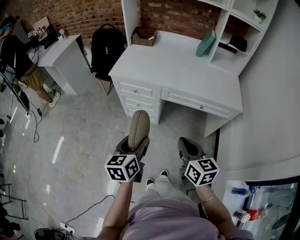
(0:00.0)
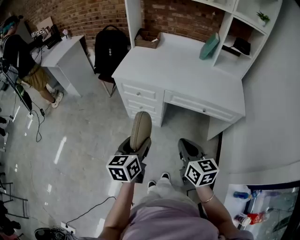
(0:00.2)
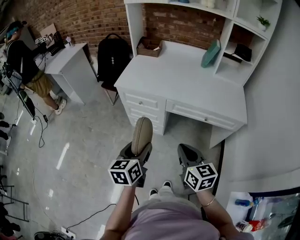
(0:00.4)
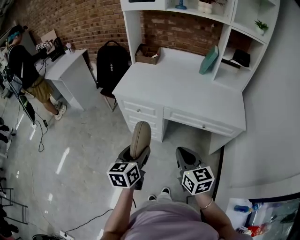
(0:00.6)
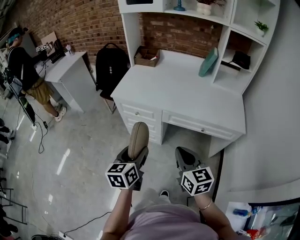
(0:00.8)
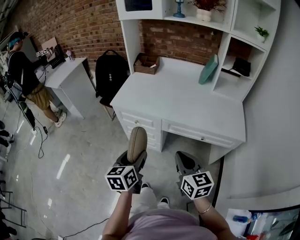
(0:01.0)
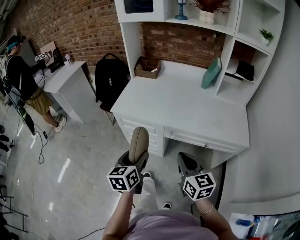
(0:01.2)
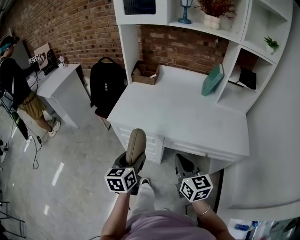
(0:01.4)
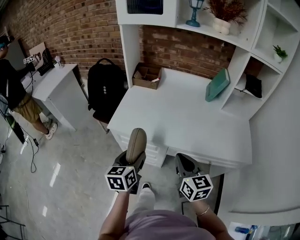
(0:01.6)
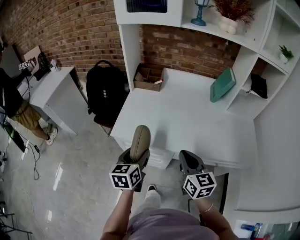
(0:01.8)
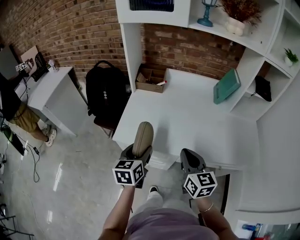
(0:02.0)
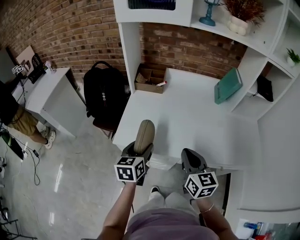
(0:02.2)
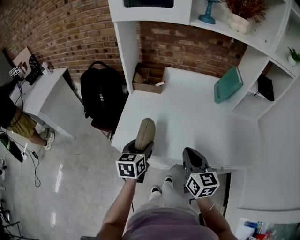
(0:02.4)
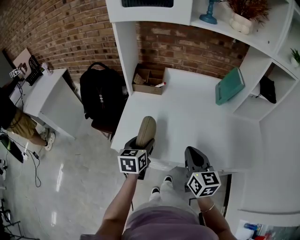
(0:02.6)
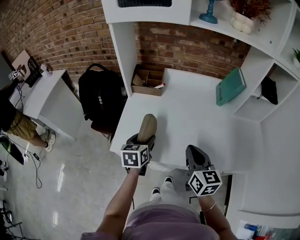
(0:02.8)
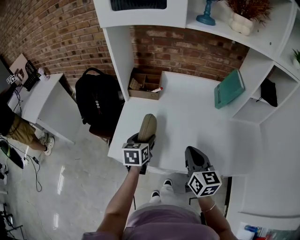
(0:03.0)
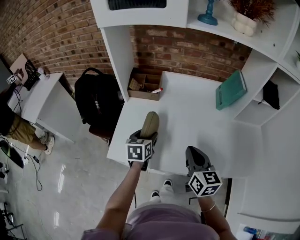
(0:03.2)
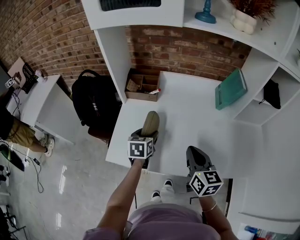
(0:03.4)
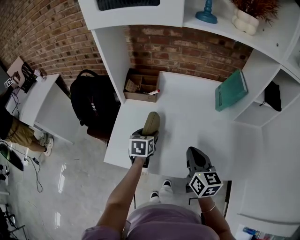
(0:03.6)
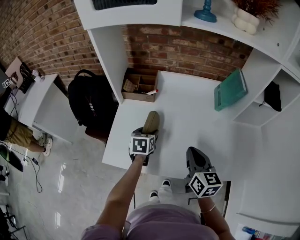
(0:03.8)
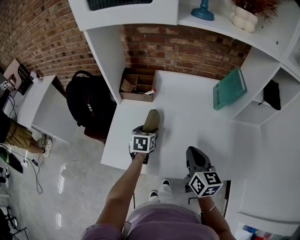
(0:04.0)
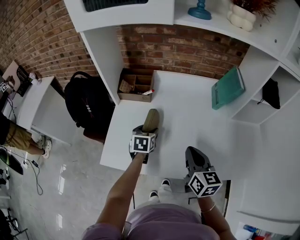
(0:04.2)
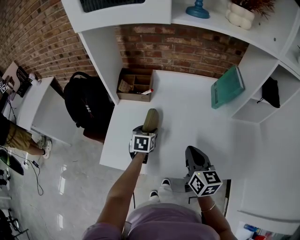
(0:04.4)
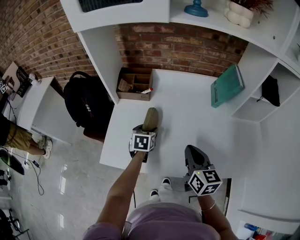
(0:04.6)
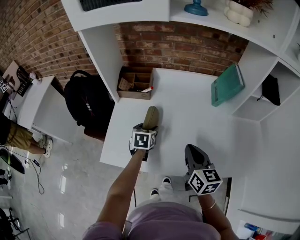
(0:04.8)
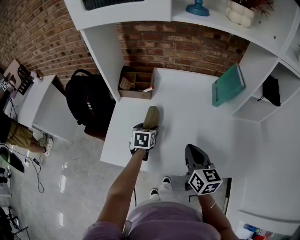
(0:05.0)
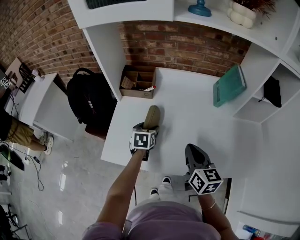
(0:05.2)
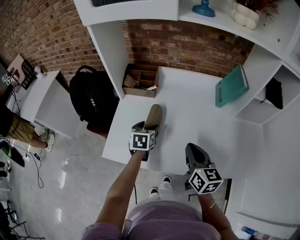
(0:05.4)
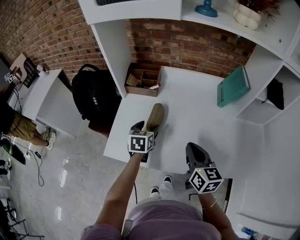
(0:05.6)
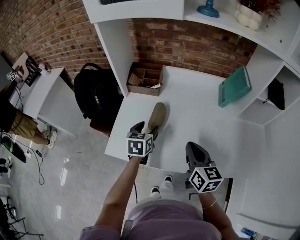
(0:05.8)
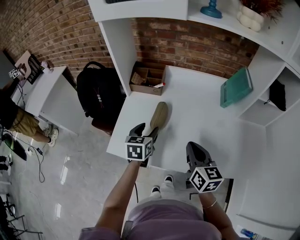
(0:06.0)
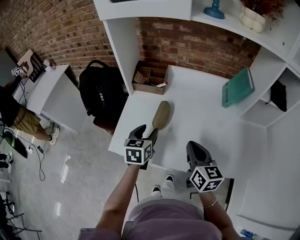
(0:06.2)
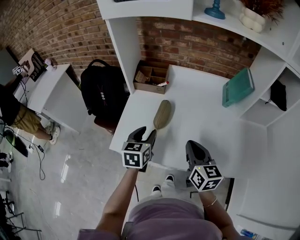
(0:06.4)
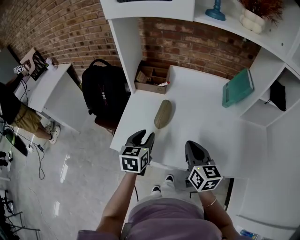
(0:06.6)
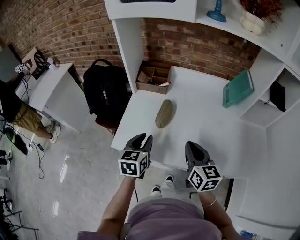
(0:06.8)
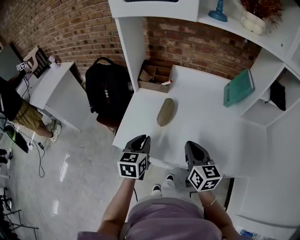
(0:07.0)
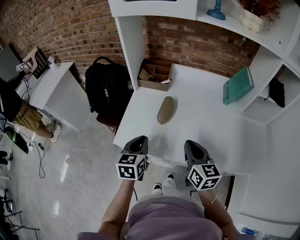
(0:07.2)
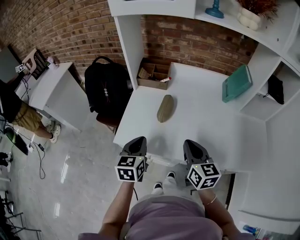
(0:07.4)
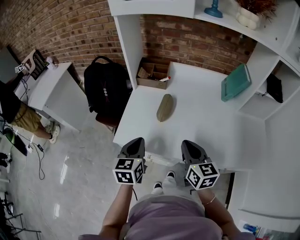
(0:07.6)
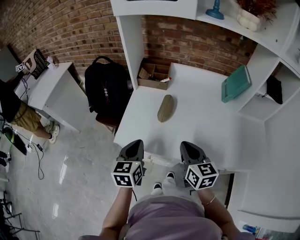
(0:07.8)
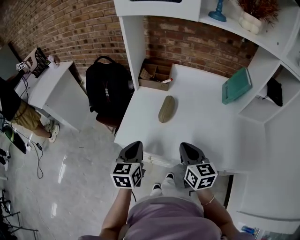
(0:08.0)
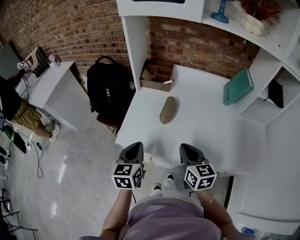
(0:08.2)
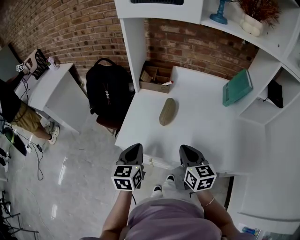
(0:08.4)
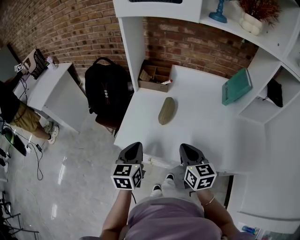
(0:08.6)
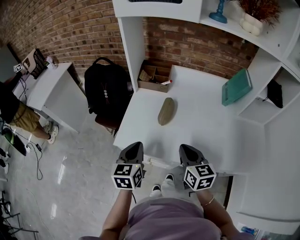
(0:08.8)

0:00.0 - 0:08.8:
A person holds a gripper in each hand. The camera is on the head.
0:00.0 - 0:01.4: The grippers both shift forward by about 20 cm.
0:01.4 - 0:03.0: The two grippers go roughly 30 cm forward.
0:03.0 - 0:04.4: The right gripper goes roughly 5 cm forward, while the left gripper shifts roughly 15 cm forward, downward and to the right.
0:04.4 - 0:05.8: The left gripper moves upward, about 5 cm.
0:05.8 - 0:07.4: The right gripper shifts approximately 5 cm backward and to the left, while the left gripper goes some 15 cm backward and to the left, and closes.
0:07.4 - 0:08.8: The grippers move only a little.

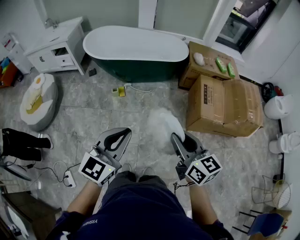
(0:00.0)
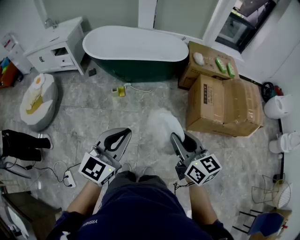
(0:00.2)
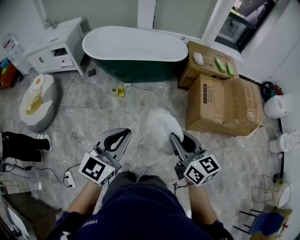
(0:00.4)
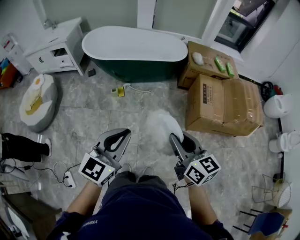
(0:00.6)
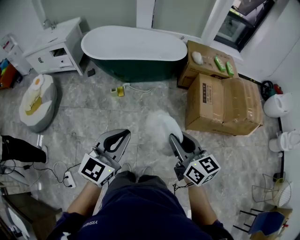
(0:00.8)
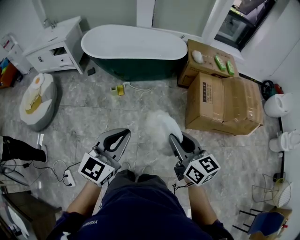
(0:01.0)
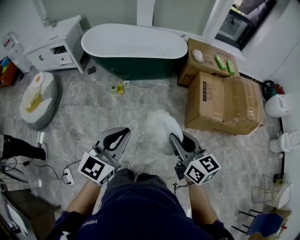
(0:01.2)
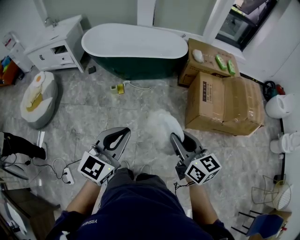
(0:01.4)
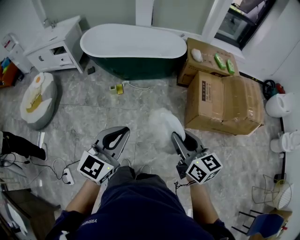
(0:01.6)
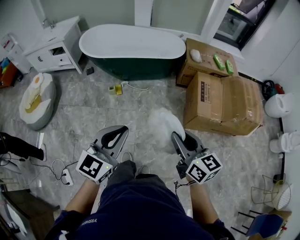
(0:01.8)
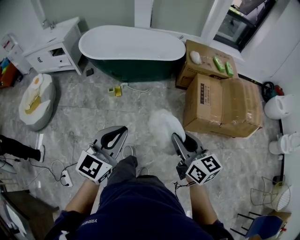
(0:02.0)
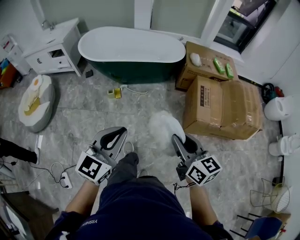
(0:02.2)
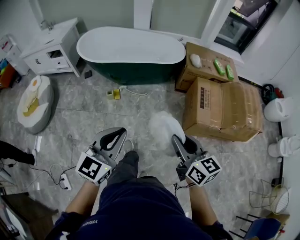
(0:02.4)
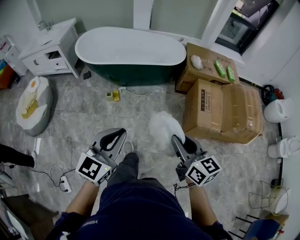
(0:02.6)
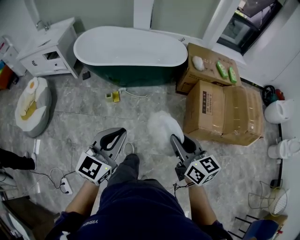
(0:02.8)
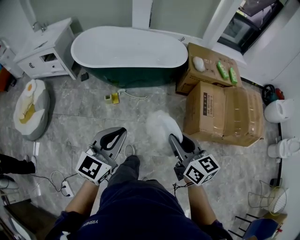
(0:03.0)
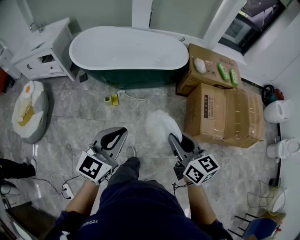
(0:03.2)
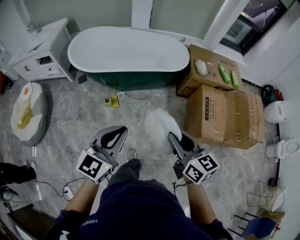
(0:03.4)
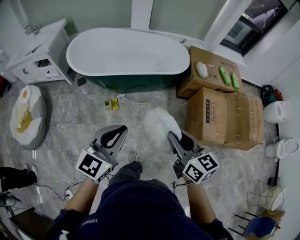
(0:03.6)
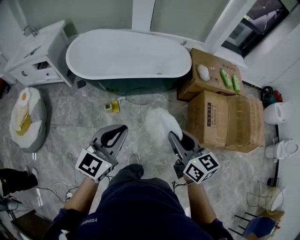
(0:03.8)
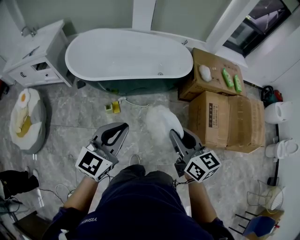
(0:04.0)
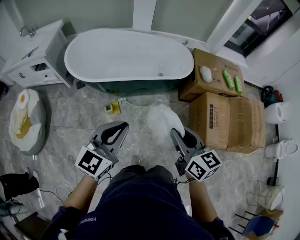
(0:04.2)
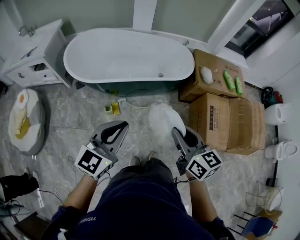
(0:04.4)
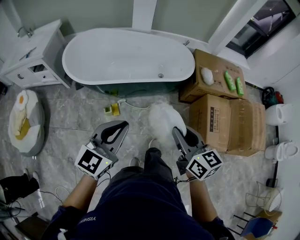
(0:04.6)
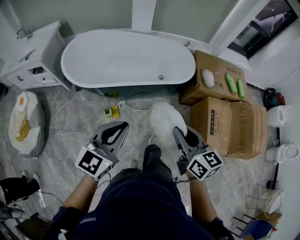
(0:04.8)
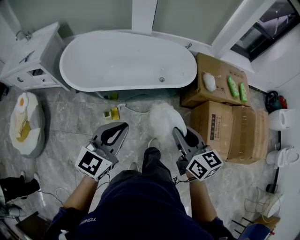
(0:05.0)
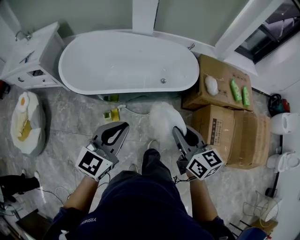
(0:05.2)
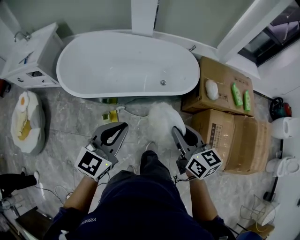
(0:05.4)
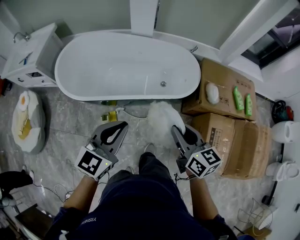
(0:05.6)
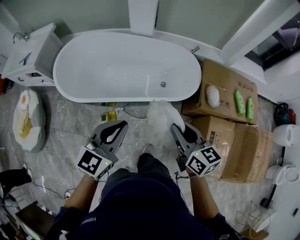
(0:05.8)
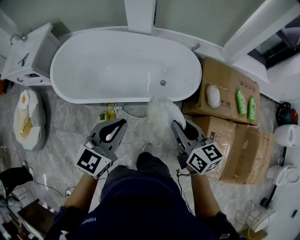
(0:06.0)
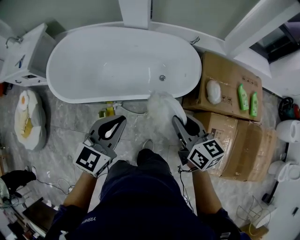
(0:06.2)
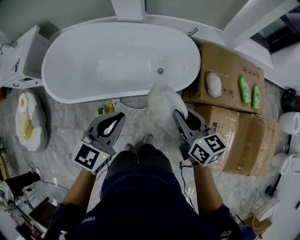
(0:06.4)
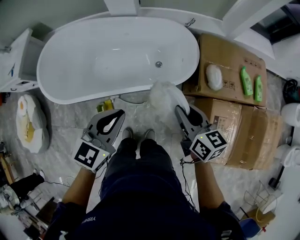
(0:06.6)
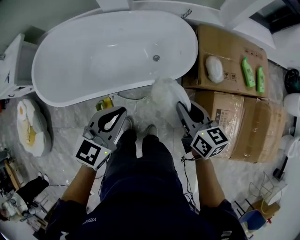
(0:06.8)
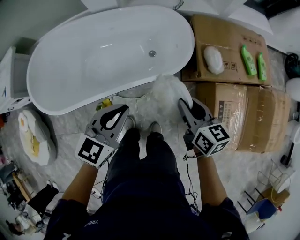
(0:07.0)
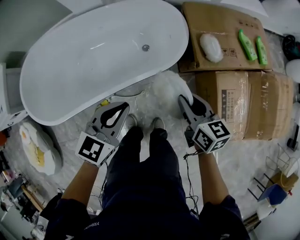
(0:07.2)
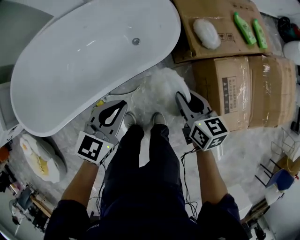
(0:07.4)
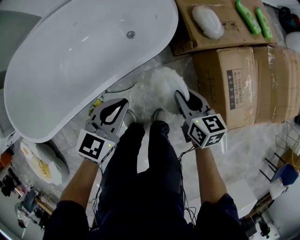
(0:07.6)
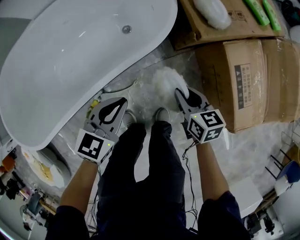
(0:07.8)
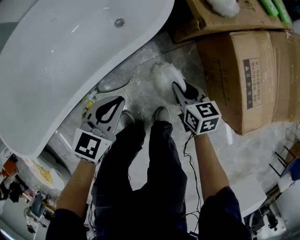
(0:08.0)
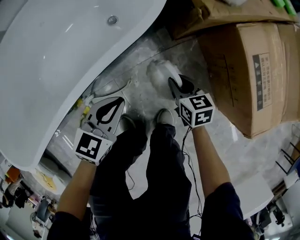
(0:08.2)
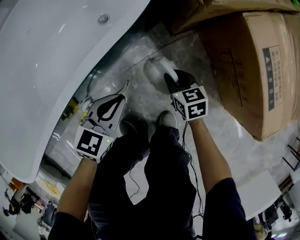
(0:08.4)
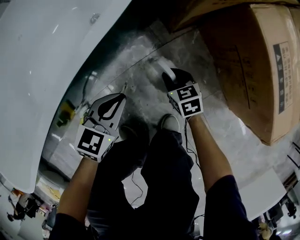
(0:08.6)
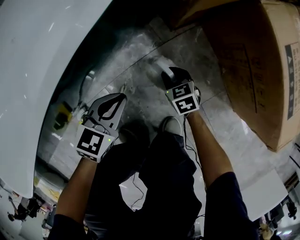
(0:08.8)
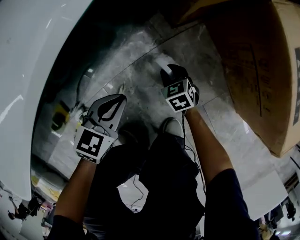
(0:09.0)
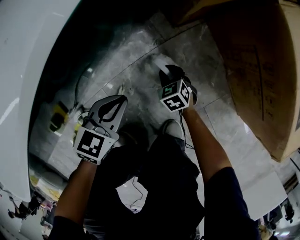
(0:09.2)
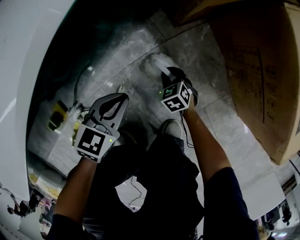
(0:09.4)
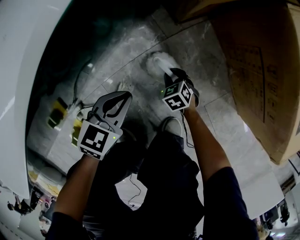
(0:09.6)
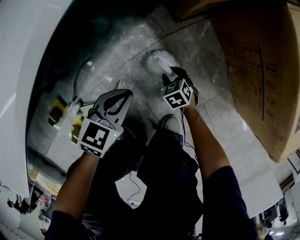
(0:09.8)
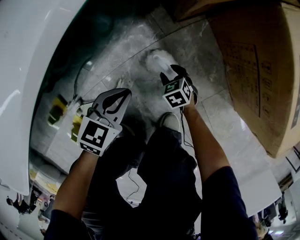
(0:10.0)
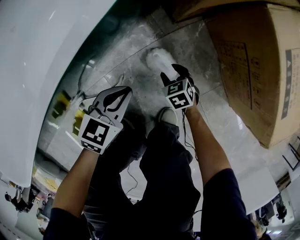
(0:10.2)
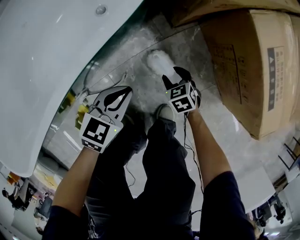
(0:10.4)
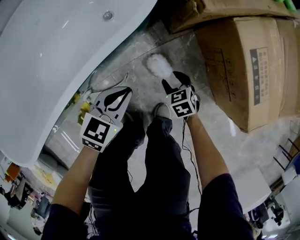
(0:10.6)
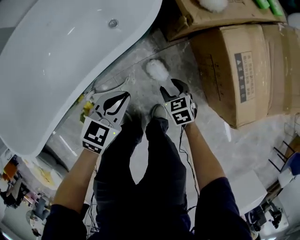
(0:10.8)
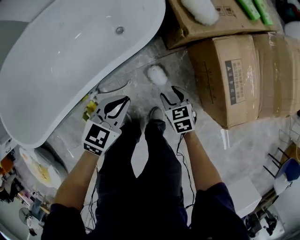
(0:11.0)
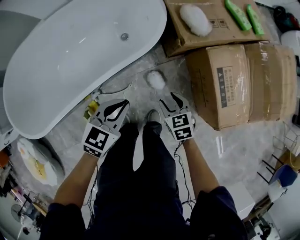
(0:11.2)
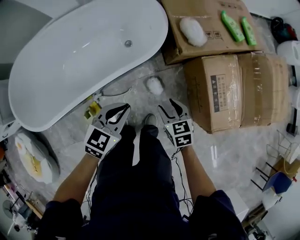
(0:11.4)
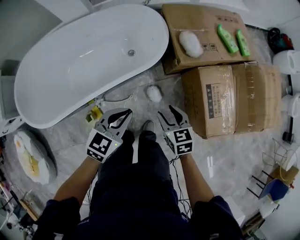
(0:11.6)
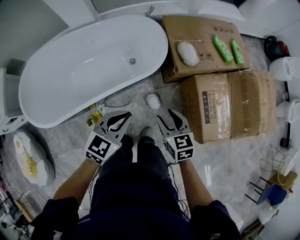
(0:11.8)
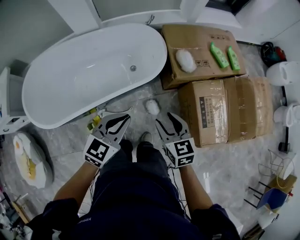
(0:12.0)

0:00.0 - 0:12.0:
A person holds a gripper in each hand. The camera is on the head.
0:00.0 - 0:01.6: The right gripper heads to the right, covering approximately 5 cm.
0:01.6 - 0:03.0: Both grippers move forward, some 20 cm.
0:03.0 - 0:04.4: The two grippers go roughly 25 cm forward and to the left.
0:04.4 - 0:06.0: The right gripper heads forward, covering approximately 35 cm. Meanwhile the left gripper heads forward and to the right, covering about 30 cm.
0:06.0 - 0:07.6: Both grippers travel together downward, some 30 cm. The right gripper rotates roughly 30 degrees. The left gripper swivels some 40 degrees.
0:07.6 - 0:09.0: Both grippers move downward, about 50 cm. The right gripper changes its angle by about 30 degrees.
0:09.0 - 0:10.4: The two grippers go about 10 cm upward. The right gripper opens.
0:10.4 - 0:12.0: Both grippers move upward, about 60 cm. The right gripper swivels roughly 30 degrees; the left gripper rotates approximately 20 degrees.

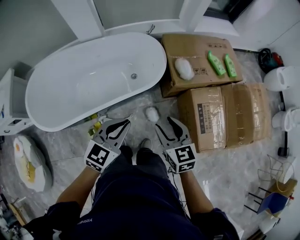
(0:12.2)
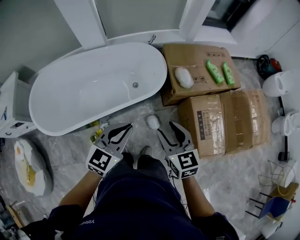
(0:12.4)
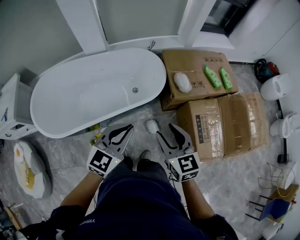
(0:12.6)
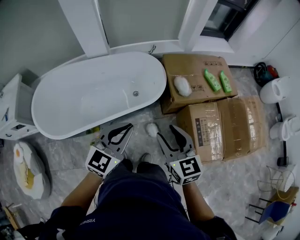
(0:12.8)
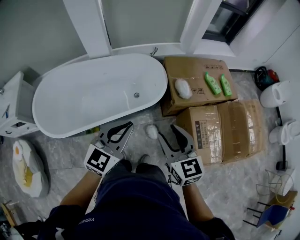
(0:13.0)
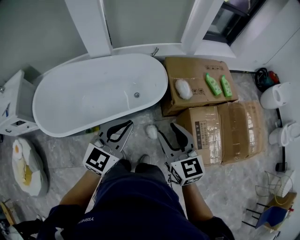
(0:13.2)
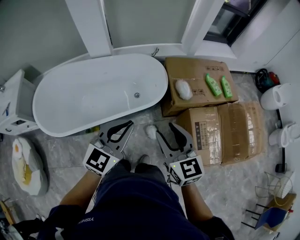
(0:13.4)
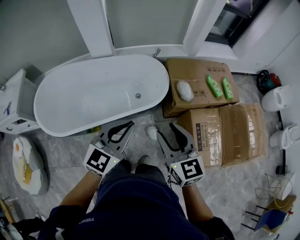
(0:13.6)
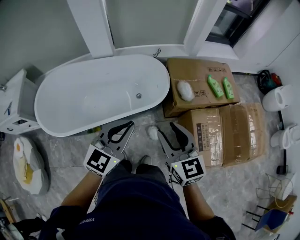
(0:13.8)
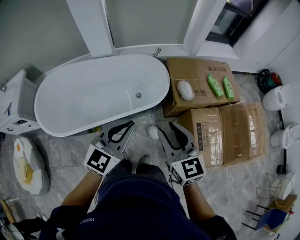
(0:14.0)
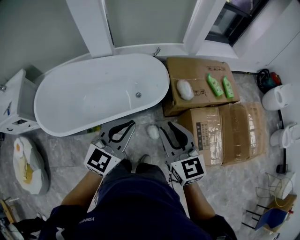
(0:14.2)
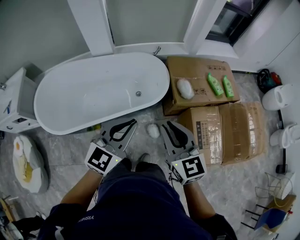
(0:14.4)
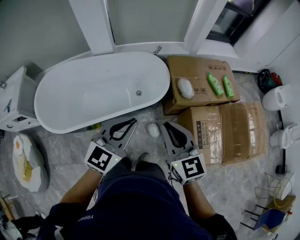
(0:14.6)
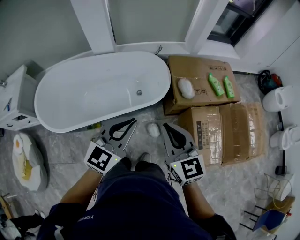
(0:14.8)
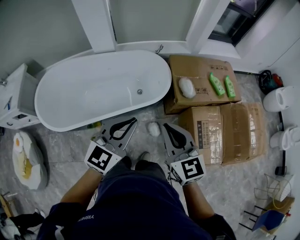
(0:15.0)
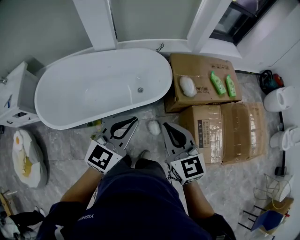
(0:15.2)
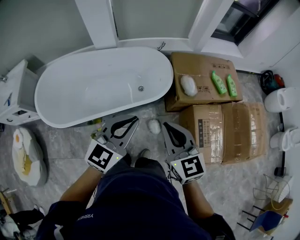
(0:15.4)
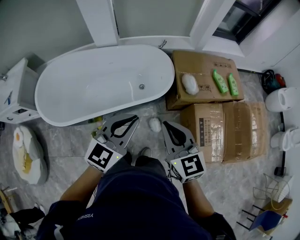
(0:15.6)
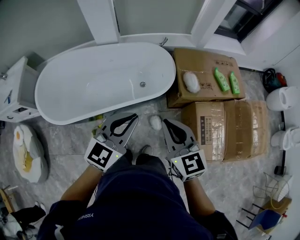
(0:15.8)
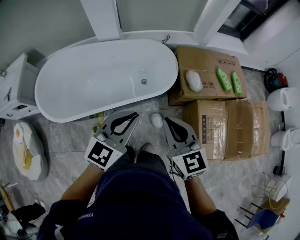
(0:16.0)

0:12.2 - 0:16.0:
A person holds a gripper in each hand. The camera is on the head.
0:12.2 - 0:13.4: Both grippers travel together upward, some 10 cm.
0:13.4 - 0:14.8: The right gripper closes.
0:14.8 - 0:16.0: The grippers stay close to where they were, moving slightly.
